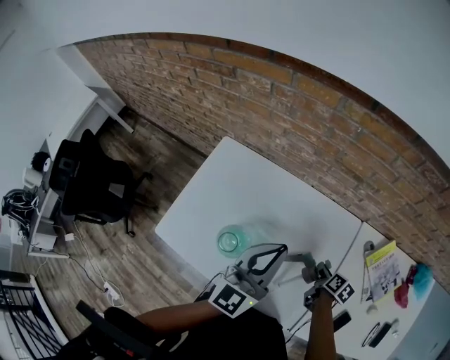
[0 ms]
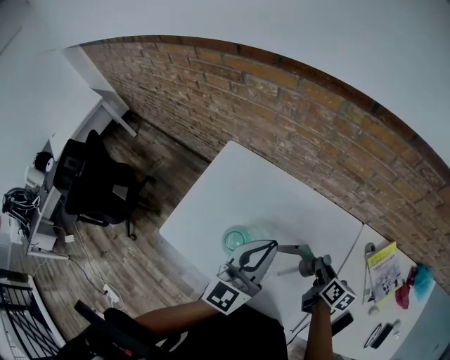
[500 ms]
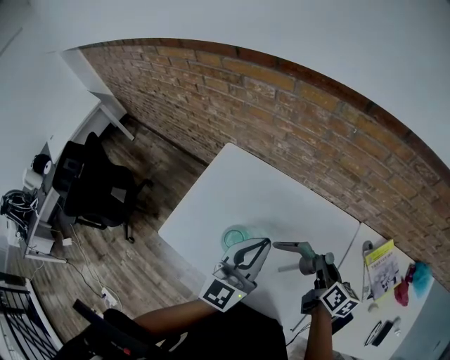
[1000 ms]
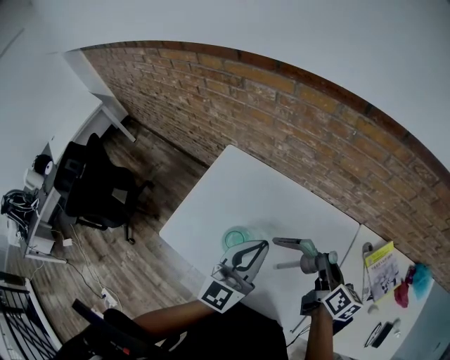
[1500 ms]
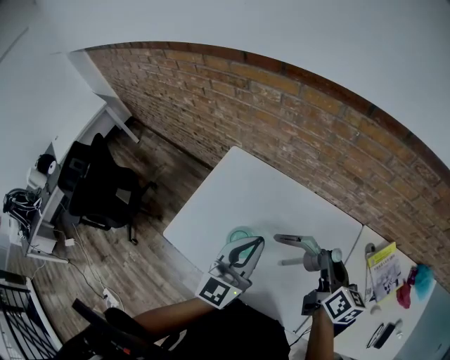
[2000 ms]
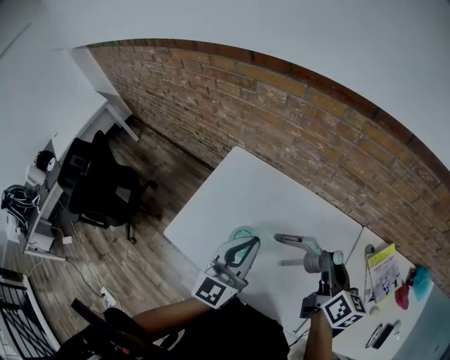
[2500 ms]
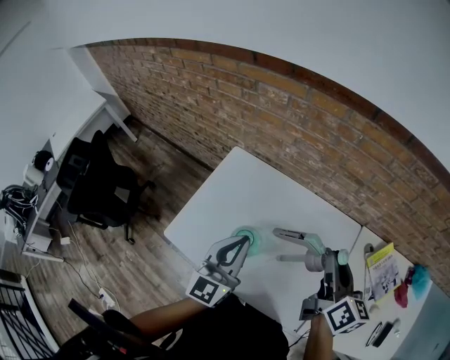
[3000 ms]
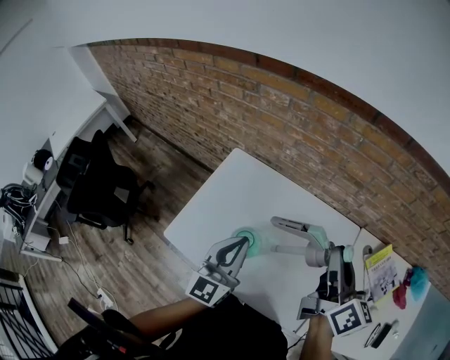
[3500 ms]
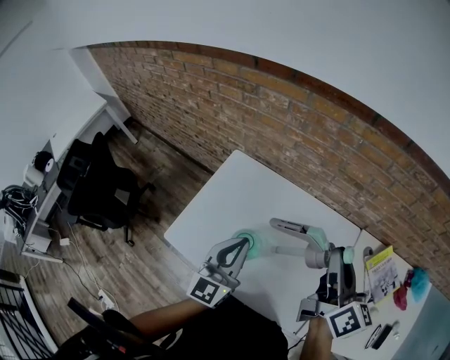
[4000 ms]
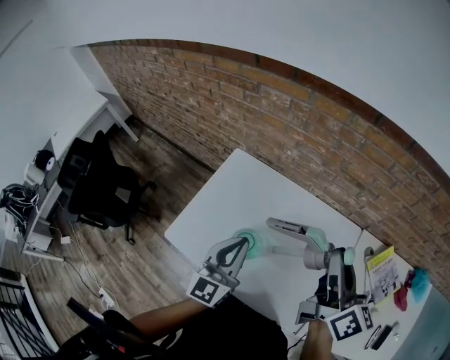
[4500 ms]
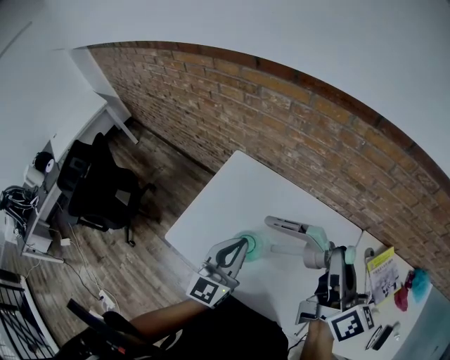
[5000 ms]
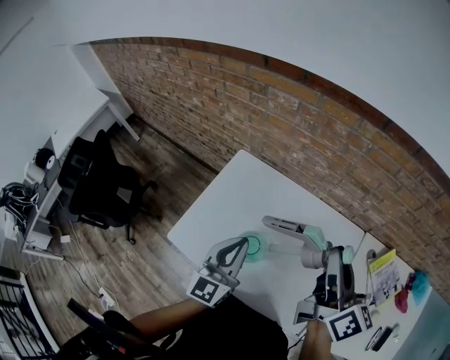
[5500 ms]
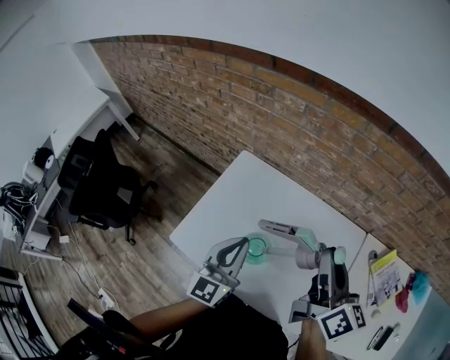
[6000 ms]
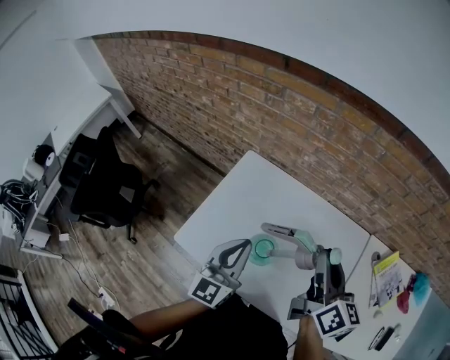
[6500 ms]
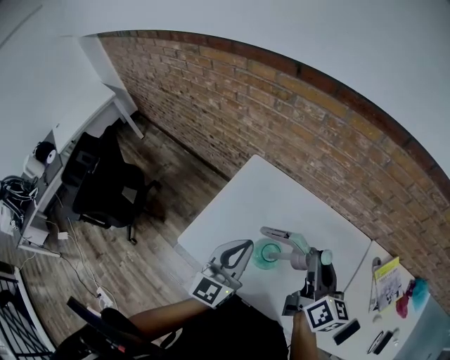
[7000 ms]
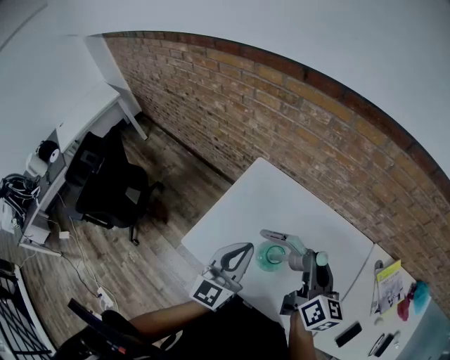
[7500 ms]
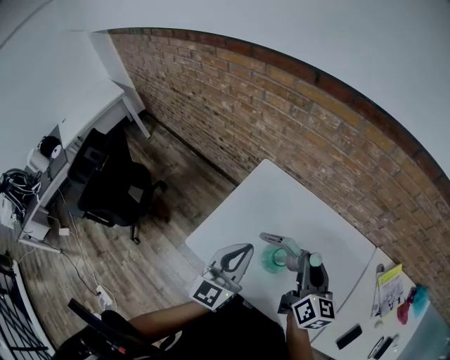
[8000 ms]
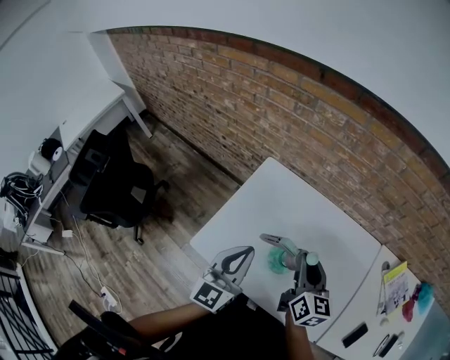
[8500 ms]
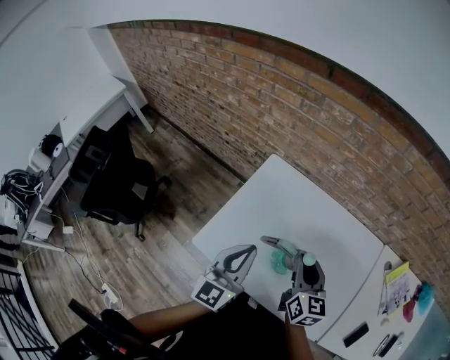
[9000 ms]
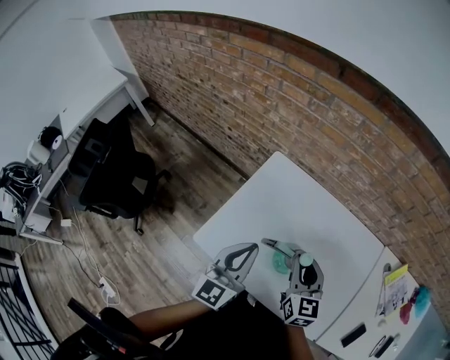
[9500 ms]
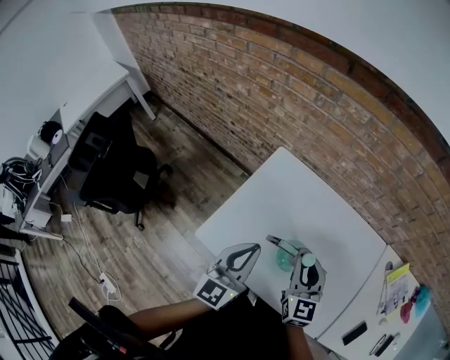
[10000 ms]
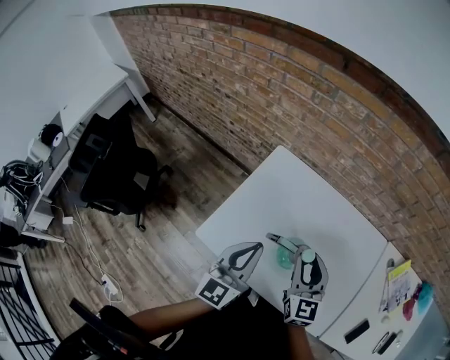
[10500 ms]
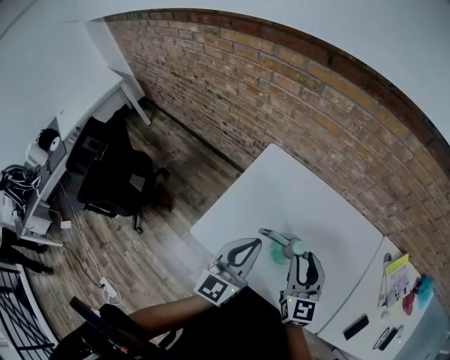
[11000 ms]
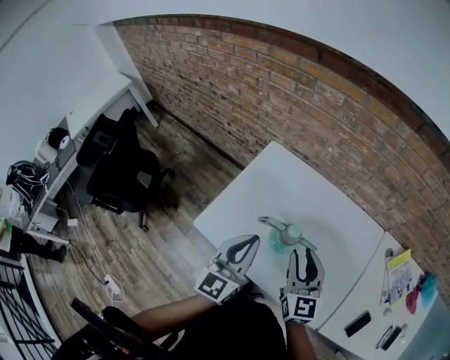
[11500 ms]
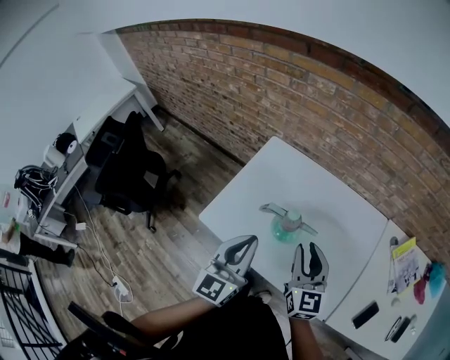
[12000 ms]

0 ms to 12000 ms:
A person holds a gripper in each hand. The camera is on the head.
0 ms to 2000 ms: The right gripper shifts about 25 cm upward, and tips its fingers upward by roughly 30 degrees, while the left gripper goes some 10 cm to the left.
2000 ms to 4000 ms: The right gripper is displaced upward by roughly 15 cm. The left gripper is displaced to the left by approximately 5 cm.
4000 ms to 6000 ms: The right gripper moves to the left, roughly 5 cm.
6000 ms to 8000 ms: The left gripper goes approximately 10 cm to the left. The right gripper heads downward and to the left, covering some 15 cm.
8000 ms to 10000 ms: The right gripper is displaced to the left and downward by approximately 10 cm, and changes its angle by roughly 30 degrees.
10000 ms to 12000 ms: The two grippers go approximately 10 cm backward and to the right.

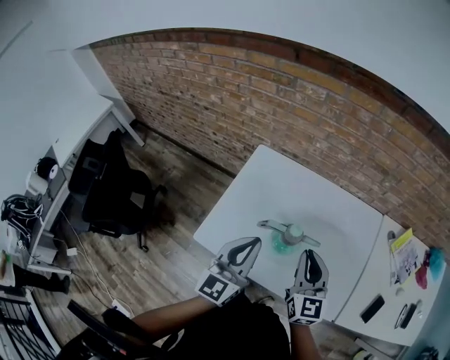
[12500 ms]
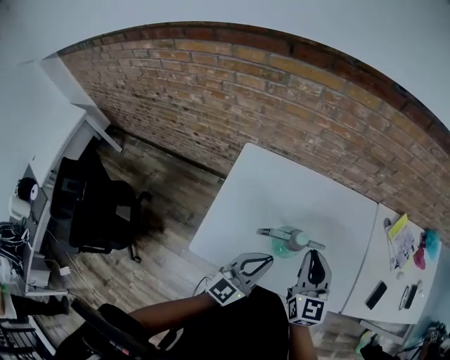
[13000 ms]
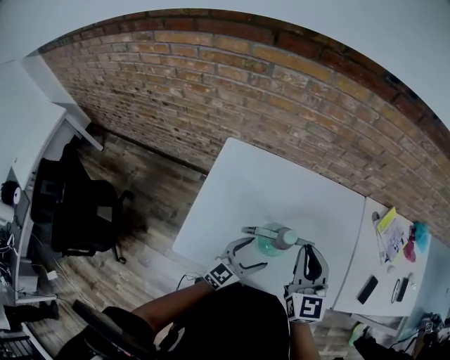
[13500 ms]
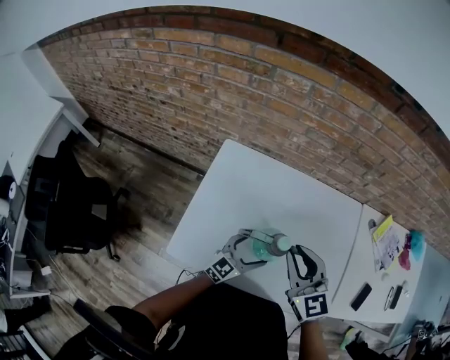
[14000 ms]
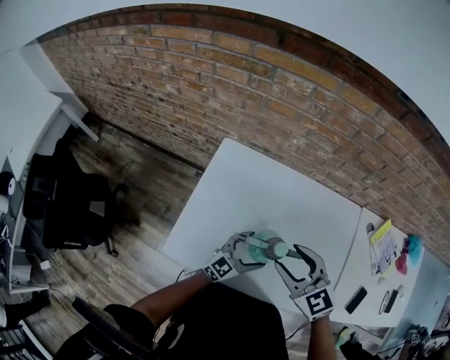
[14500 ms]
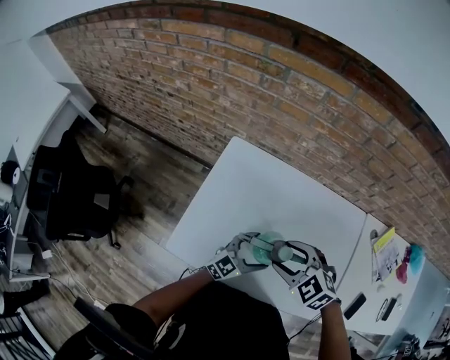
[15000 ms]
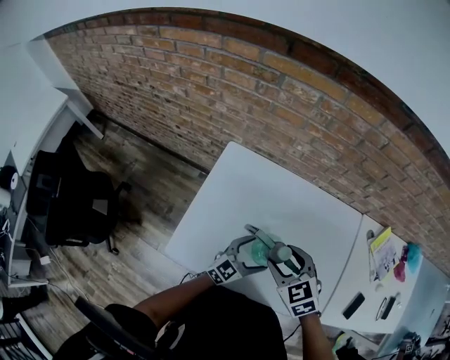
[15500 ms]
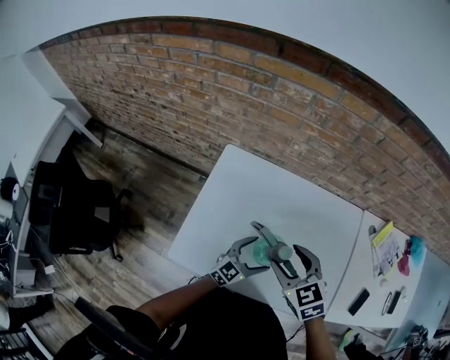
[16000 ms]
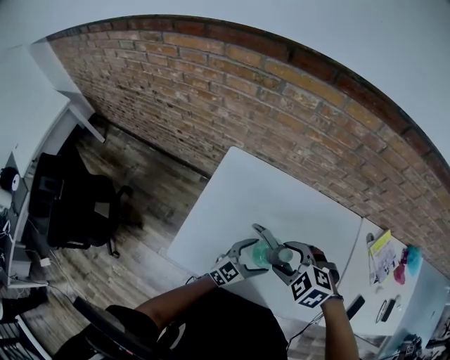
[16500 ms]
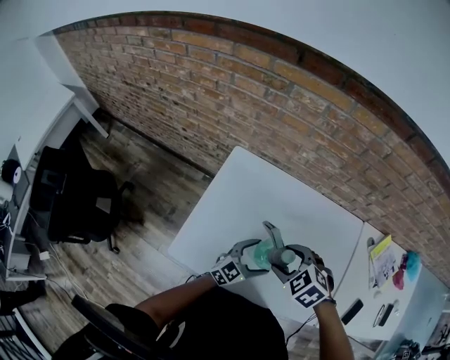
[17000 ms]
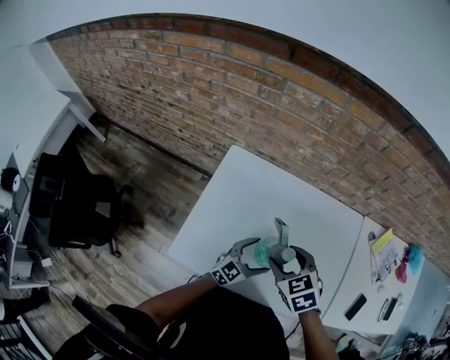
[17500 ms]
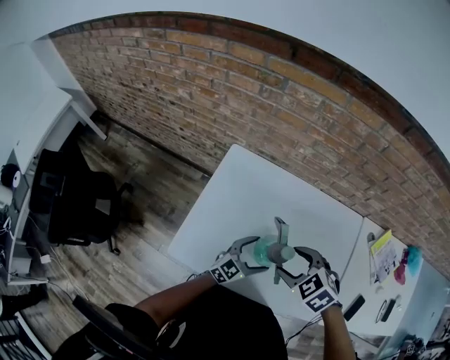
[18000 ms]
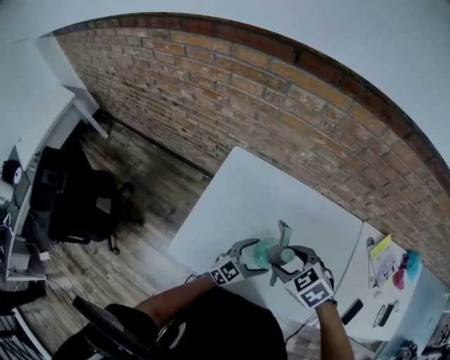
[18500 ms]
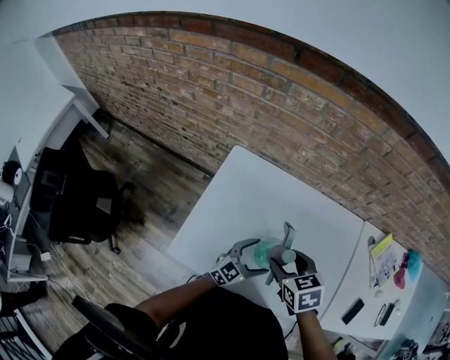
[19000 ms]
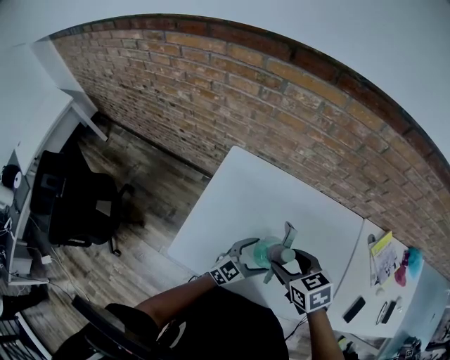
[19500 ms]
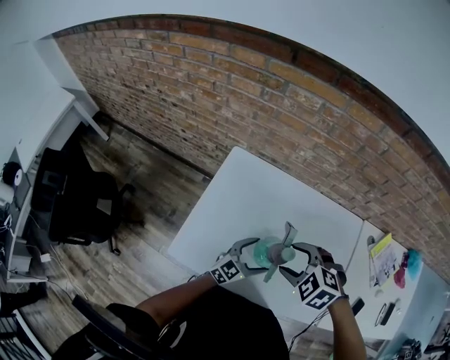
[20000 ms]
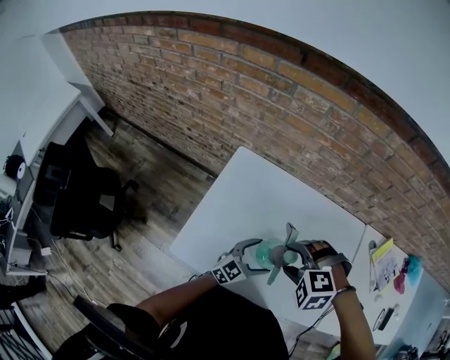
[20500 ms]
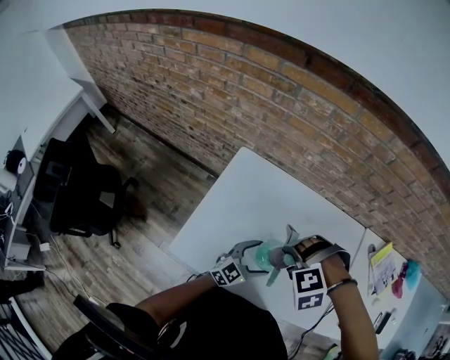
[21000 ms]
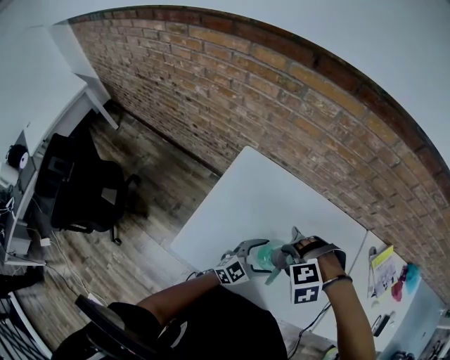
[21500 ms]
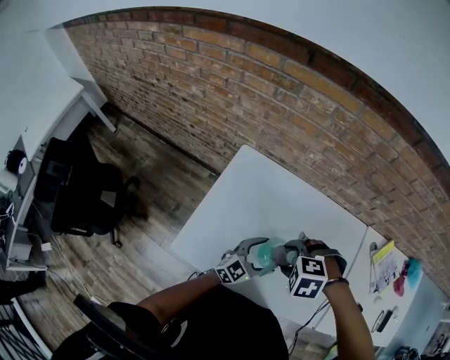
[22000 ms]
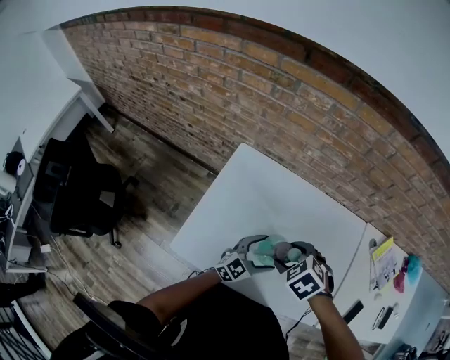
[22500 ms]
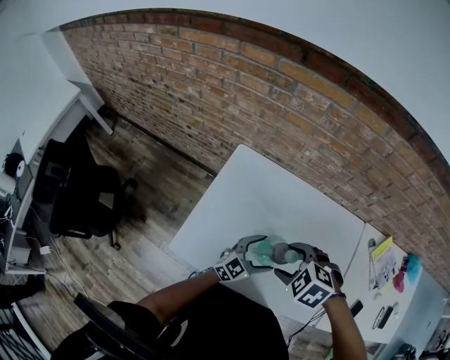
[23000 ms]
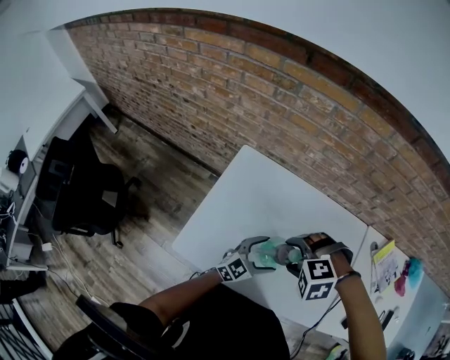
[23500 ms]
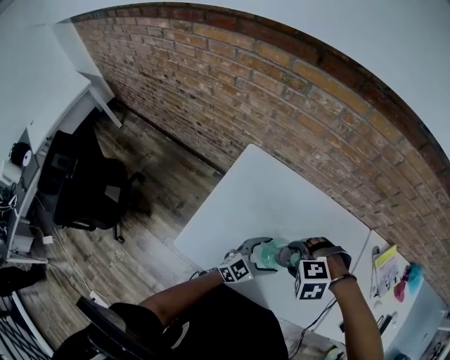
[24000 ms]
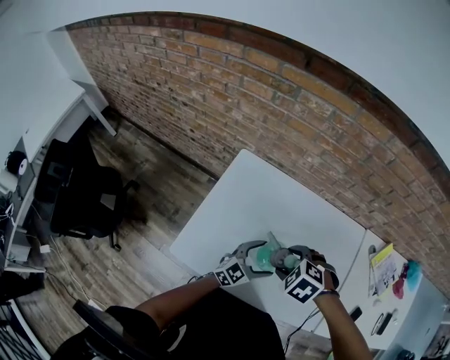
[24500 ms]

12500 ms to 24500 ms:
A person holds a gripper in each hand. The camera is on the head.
12500 ms to 14500 ms: The left gripper travels downward by about 25 cm, swivels about 40 degrees, and opens up. The right gripper moves about 5 cm, swivels some 40 degrees, and opens up.
14500 ms to 16500 ms: The right gripper tilts its fingers about 30 degrees downward.
16500 ms to 18500 ms: The right gripper swivels roughly 20 degrees.
18500 ms to 20500 ms: The right gripper rolls counterclockwise, seen from behind, by about 50 degrees.
20500 ms to 22500 ms: The right gripper rotates around the line of its fingers by about 50 degrees, clockwise from behind.

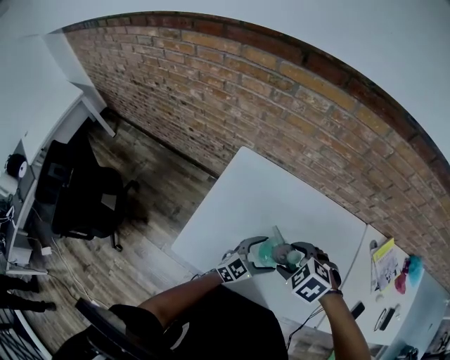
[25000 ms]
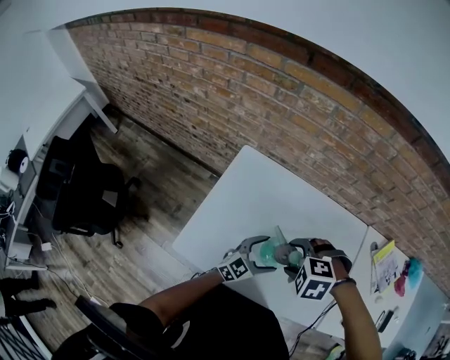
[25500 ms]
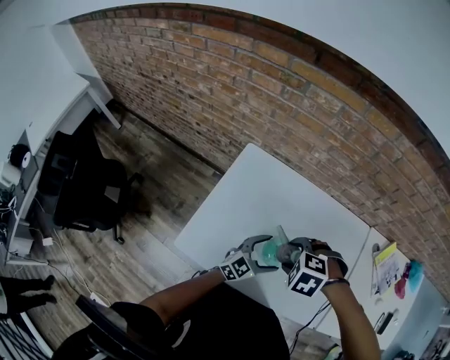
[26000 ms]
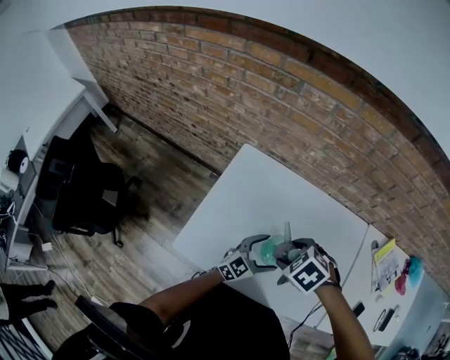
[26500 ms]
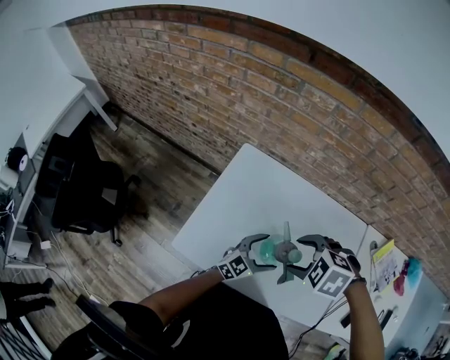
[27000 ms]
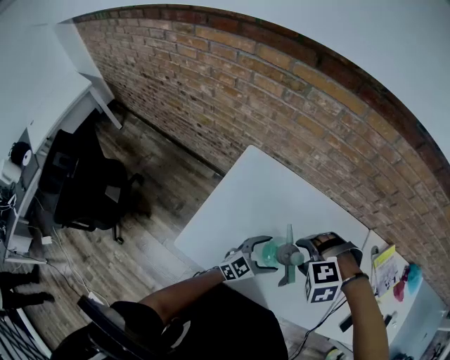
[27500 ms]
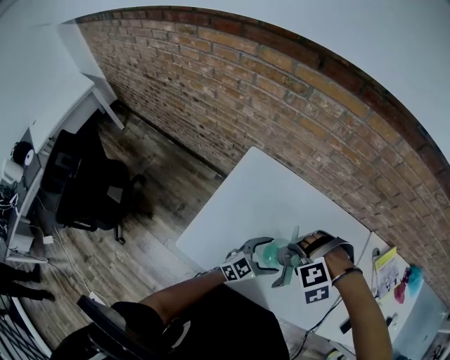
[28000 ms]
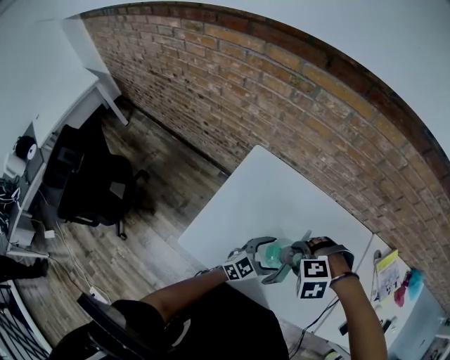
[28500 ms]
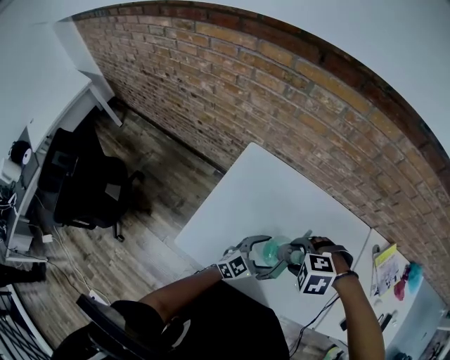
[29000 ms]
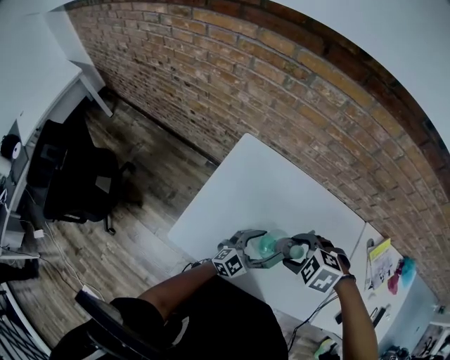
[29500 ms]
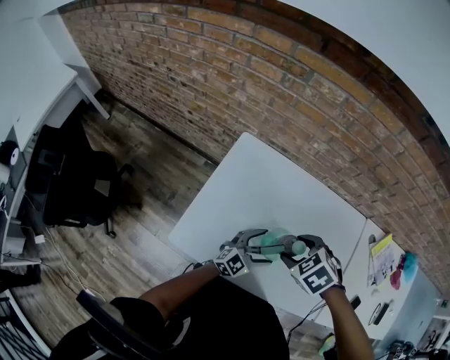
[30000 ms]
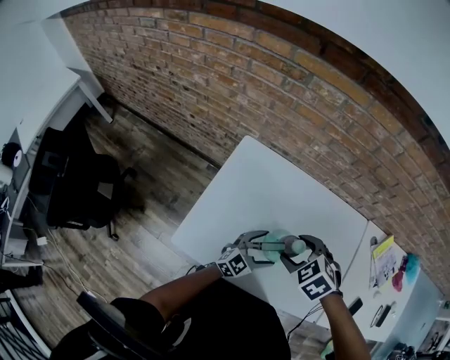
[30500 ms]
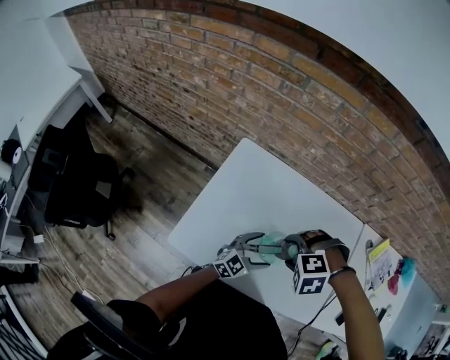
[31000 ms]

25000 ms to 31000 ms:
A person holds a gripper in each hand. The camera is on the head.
27000 ms to 29000 ms: The right gripper is displaced downward by roughly 5 cm.
